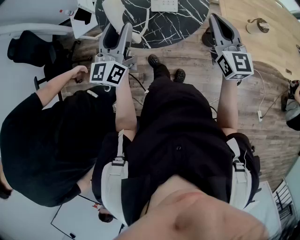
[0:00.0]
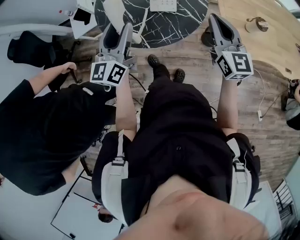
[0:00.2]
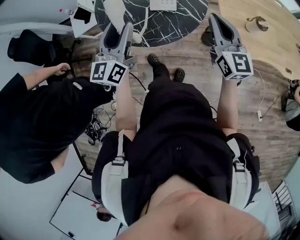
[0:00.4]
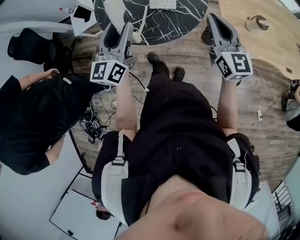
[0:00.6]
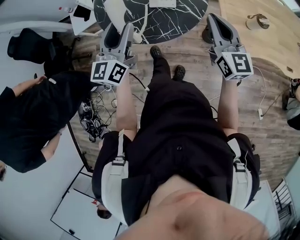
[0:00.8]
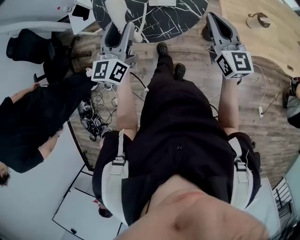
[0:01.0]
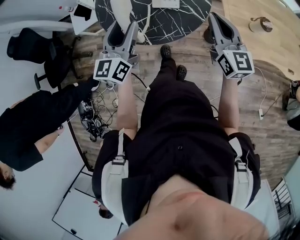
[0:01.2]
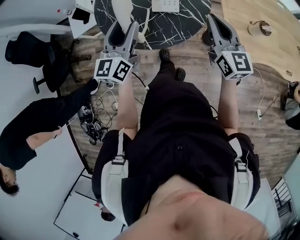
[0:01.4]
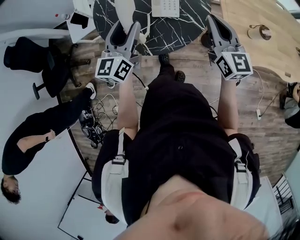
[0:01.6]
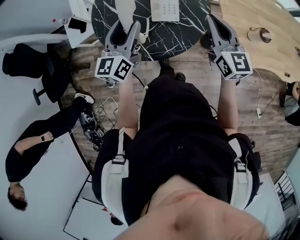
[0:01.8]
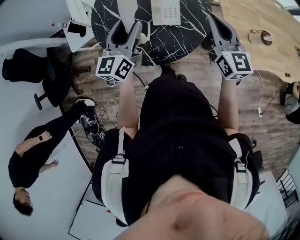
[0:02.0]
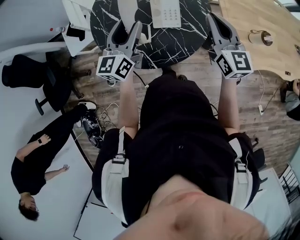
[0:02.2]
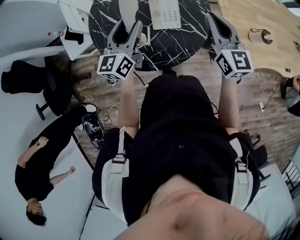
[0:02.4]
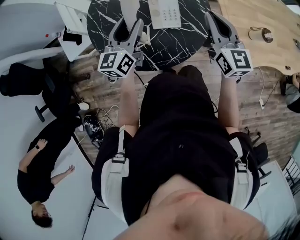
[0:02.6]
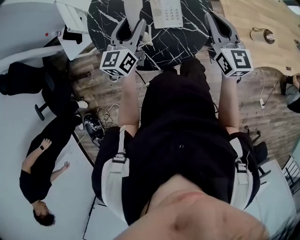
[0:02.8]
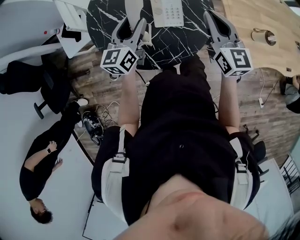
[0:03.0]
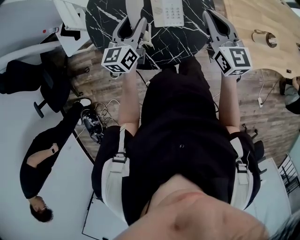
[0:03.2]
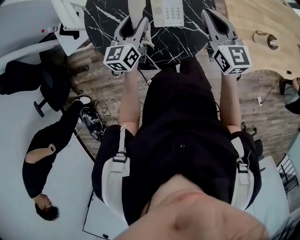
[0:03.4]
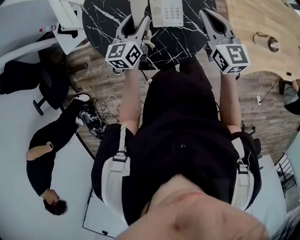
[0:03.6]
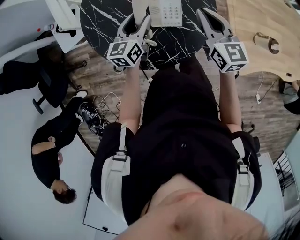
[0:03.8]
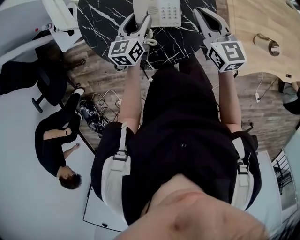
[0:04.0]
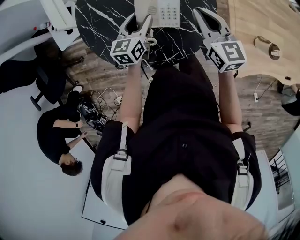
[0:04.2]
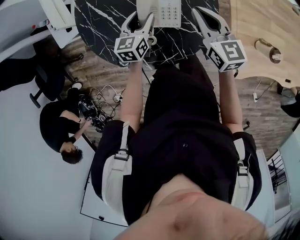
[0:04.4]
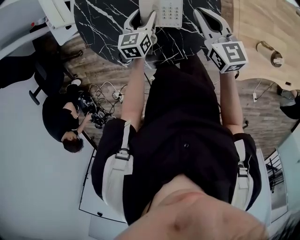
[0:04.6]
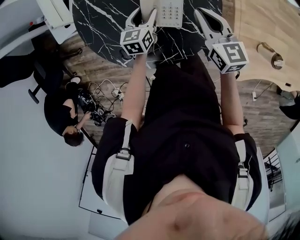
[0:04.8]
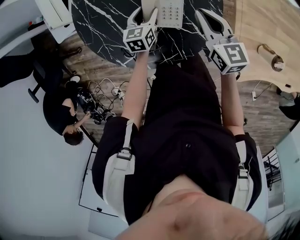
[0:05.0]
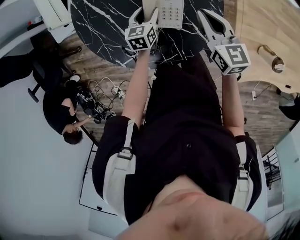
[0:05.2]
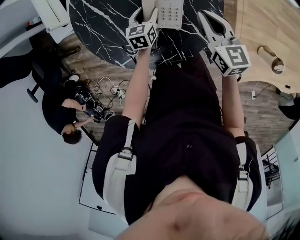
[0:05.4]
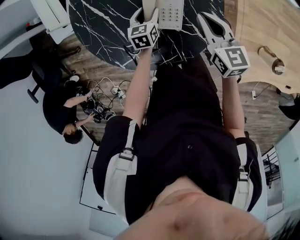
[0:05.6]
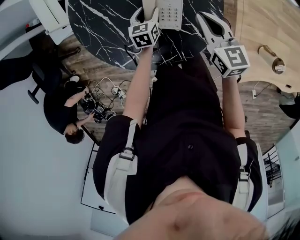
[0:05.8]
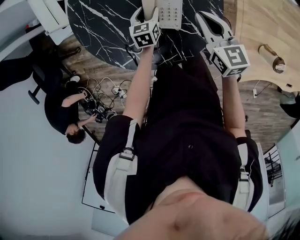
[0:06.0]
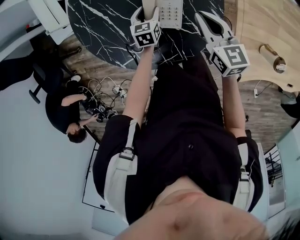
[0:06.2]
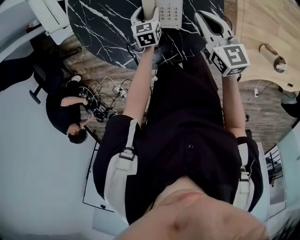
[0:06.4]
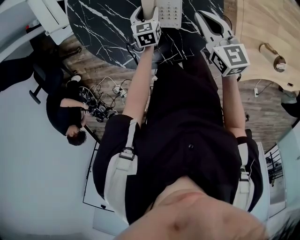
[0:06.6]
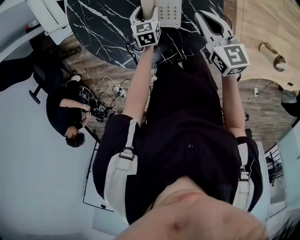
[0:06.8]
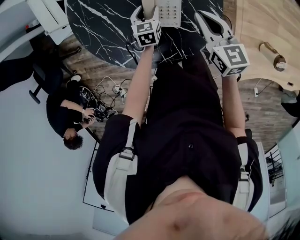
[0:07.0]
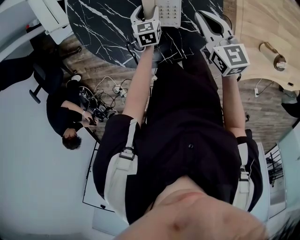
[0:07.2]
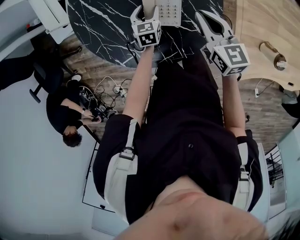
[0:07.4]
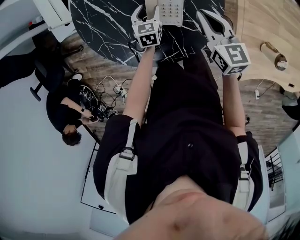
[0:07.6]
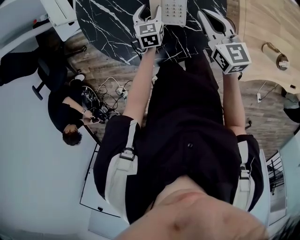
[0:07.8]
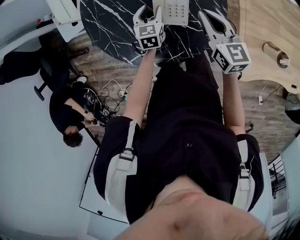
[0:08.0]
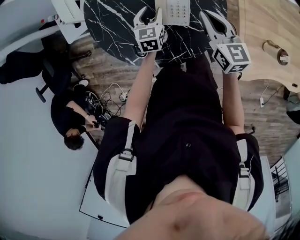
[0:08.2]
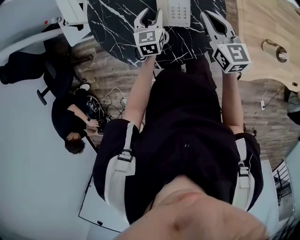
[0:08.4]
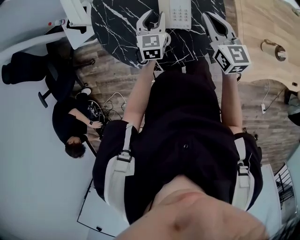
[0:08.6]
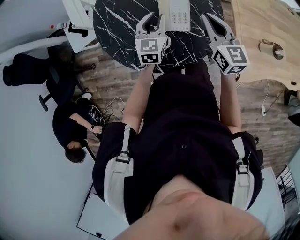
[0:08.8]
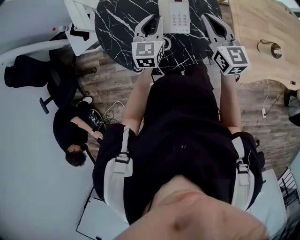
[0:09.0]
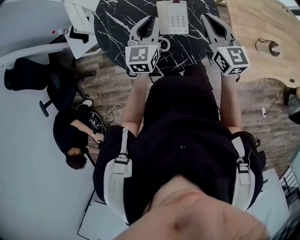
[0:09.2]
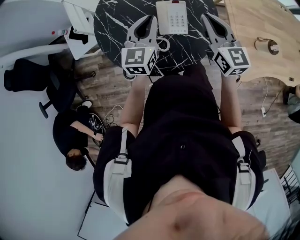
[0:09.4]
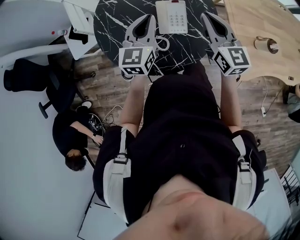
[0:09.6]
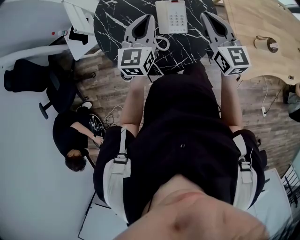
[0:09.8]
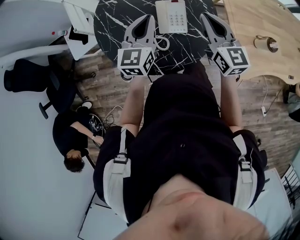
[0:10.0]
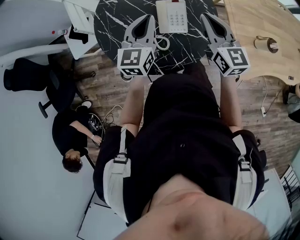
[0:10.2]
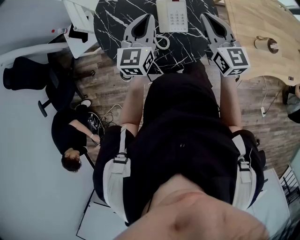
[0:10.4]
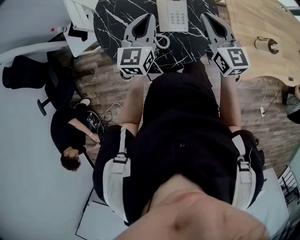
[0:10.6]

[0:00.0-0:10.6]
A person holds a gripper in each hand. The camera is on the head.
0:00.0 to 0:01.6: The two grippers go some 5 cm forward.
0:01.6 to 0:03.0: The left gripper moves forward and downward, approximately 15 cm. Meanwhile the right gripper heads forward and to the left, covering some 10 cm.
0:03.0 to 0:04.6: The two grippers go about 15 cm downward and forward. The left gripper turns by roughly 20 degrees.
0:04.6 to 0:06.0: The left gripper goes some 10 cm downward.
0:06.0 to 0:07.6: The grippers make only small movements.
0:07.6 to 0:09.0: The left gripper moves upward, approximately 20 cm, changes its angle by some 30 degrees, and closes its fingers. The right gripper travels upward and backward by some 10 cm.
0:09.0 to 0:10.6: The left gripper heads upward, covering about 10 cm.

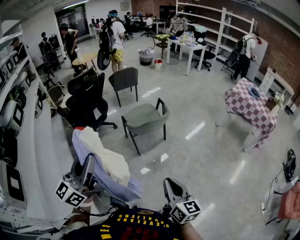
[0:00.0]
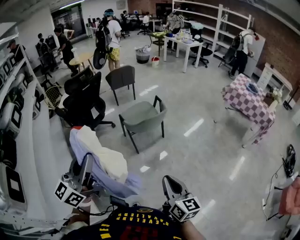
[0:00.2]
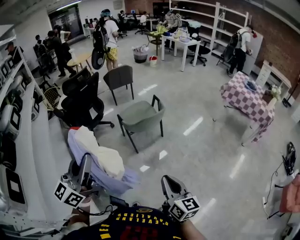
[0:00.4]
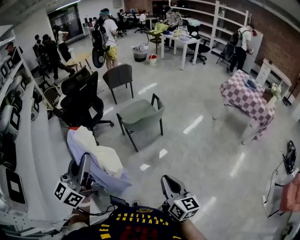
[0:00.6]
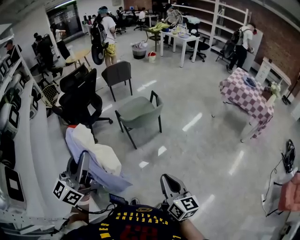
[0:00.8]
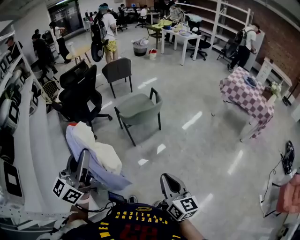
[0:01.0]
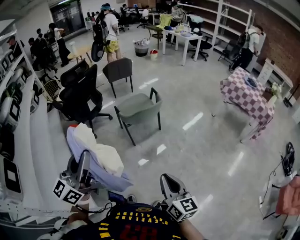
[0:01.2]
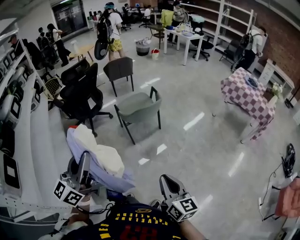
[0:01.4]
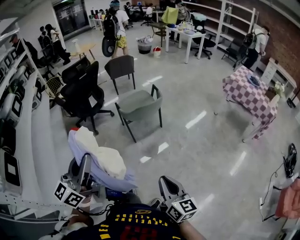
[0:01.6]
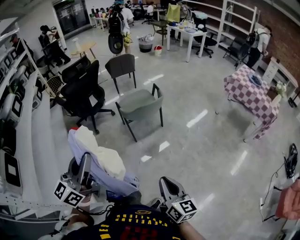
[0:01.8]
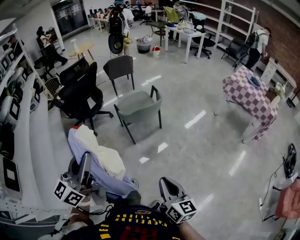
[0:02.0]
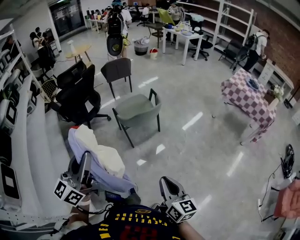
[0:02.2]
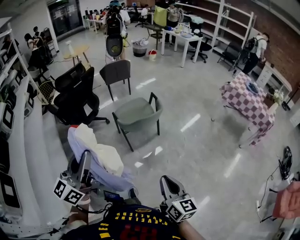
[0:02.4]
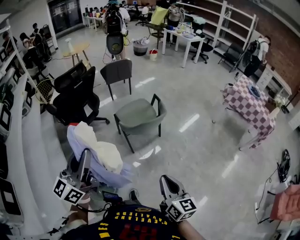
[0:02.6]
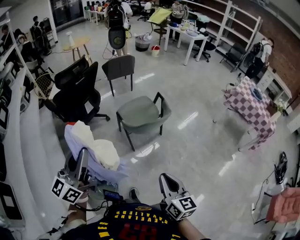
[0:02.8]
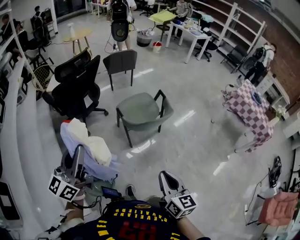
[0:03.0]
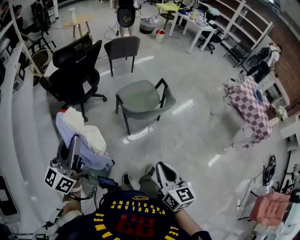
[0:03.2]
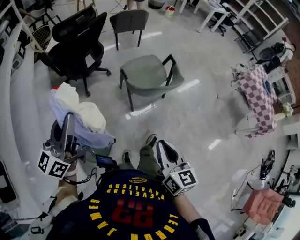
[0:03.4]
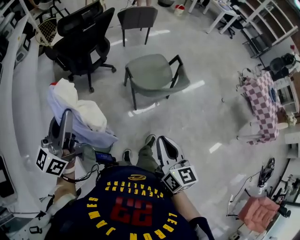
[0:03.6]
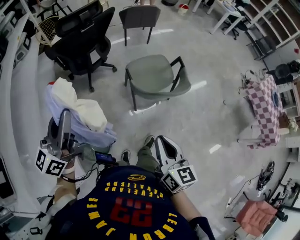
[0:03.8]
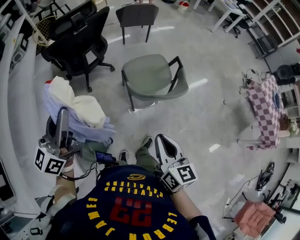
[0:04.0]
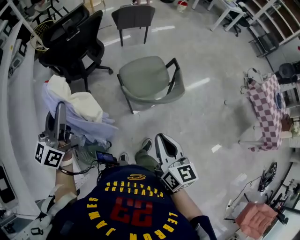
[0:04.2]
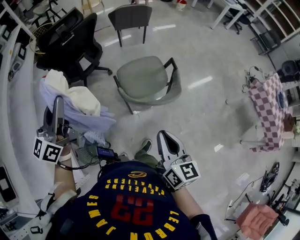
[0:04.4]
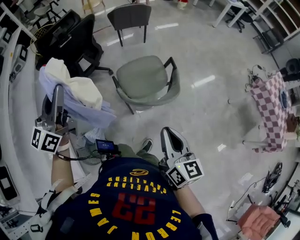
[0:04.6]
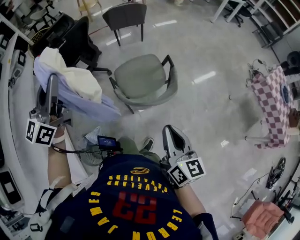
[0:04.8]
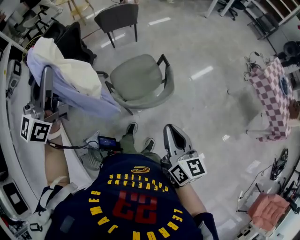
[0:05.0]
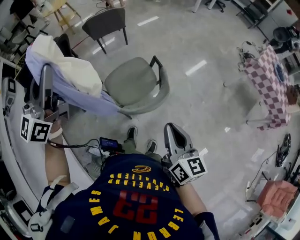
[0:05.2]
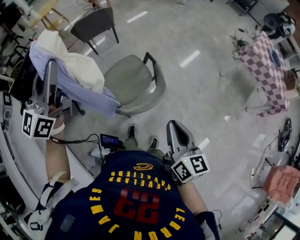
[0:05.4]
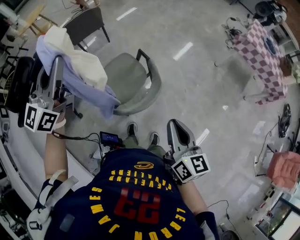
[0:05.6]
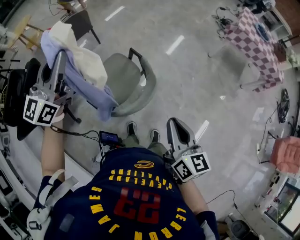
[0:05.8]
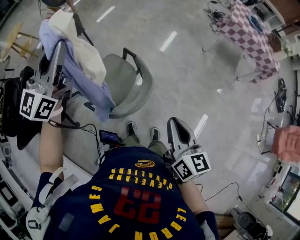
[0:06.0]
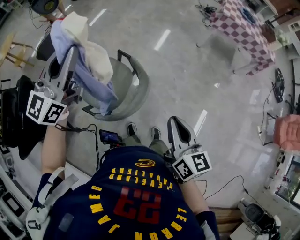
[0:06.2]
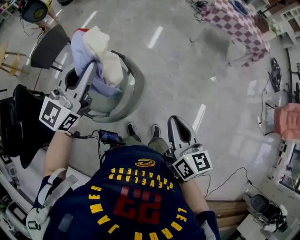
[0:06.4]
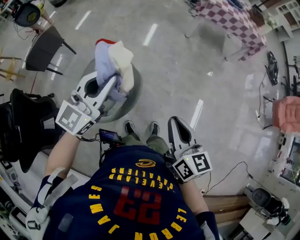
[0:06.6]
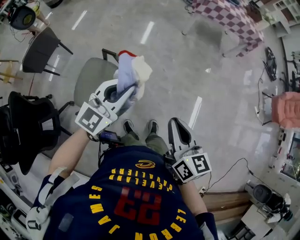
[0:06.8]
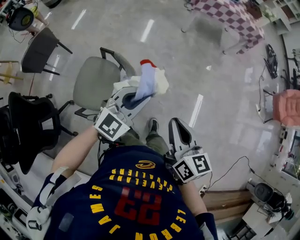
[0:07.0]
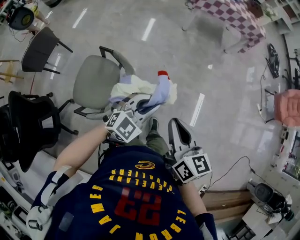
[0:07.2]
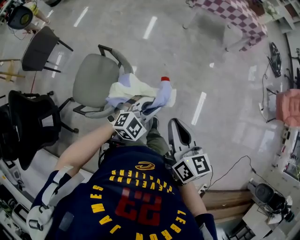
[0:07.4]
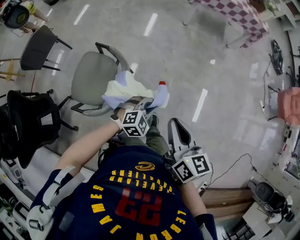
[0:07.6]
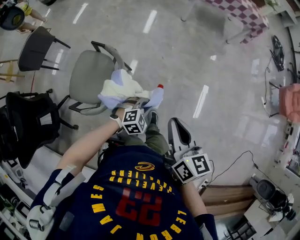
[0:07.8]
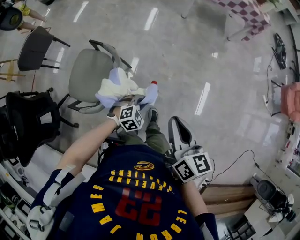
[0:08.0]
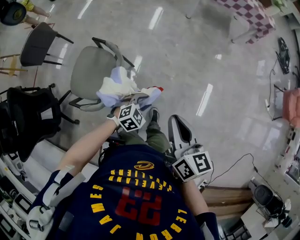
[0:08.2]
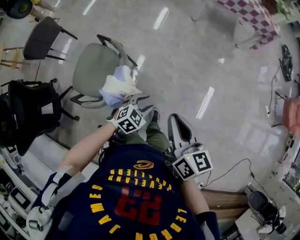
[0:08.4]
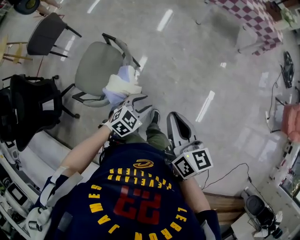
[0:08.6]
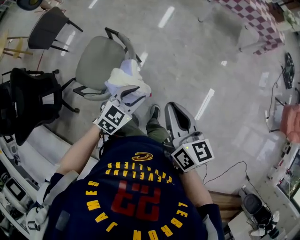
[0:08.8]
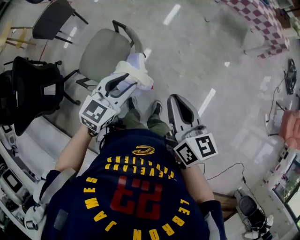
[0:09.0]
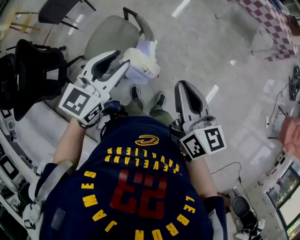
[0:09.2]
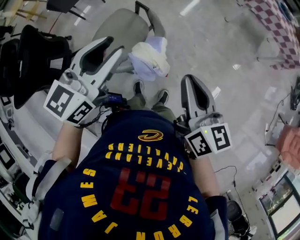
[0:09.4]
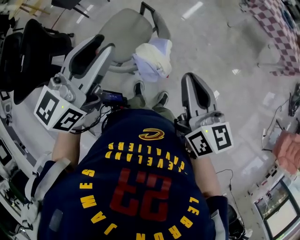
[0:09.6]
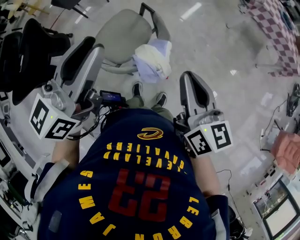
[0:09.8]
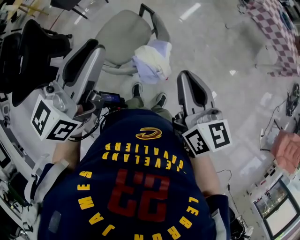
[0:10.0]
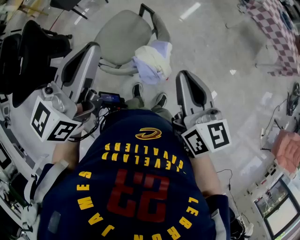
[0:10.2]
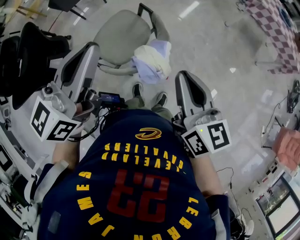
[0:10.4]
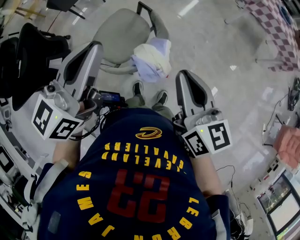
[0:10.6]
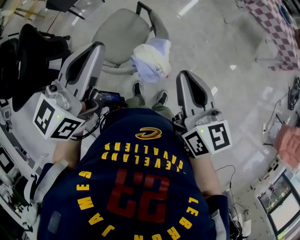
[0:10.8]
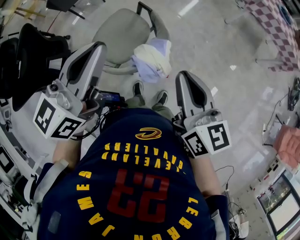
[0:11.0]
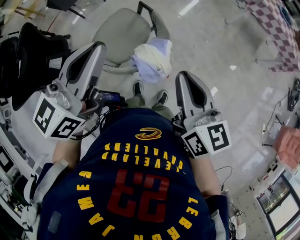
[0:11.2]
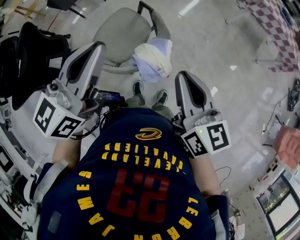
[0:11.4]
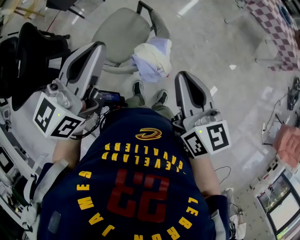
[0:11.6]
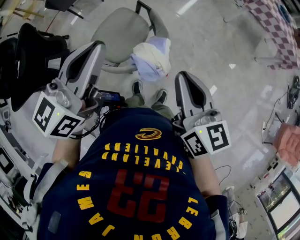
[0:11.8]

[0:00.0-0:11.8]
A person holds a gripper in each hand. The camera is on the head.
0:00.0 to 0:01.4: The grippers both shift to the right by roughly 5 cm.
0:01.4 to 0:03.0: The two grippers go roughly 25 cm forward and to the left.
0:03.0 to 0:04.4: The two grippers go about 25 cm forward.
0:04.4 to 0:06.0: The right gripper moves some 15 cm, and swivels about 40 degrees, while the left gripper moves about 40 cm, and swivels roughly 50 degrees.
0:06.0 to 0:07.4: The left gripper ends up about 50 cm from where it was, and tilts its fingers roughly 40 degrees downward; the right gripper changes place by about 10 cm.
0:07.4 to 0:08.8: The left gripper goes about 5 cm to the left, moves approximately 15 cm downward and comes back, rotates approximately 30 degrees, and opens its fingers.
0:08.8 to 0:10.4: The right gripper heads to the left, covering approximately 15 cm, while the left gripper shifts approximately 35 cm upward and to the left, tilts its fingers approximately 40 degrees upward, and closes up.
0:10.4 to 0:11.8: The grippers move only a little.

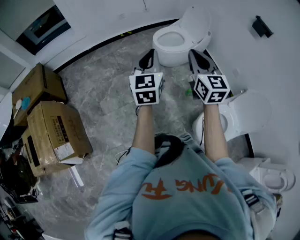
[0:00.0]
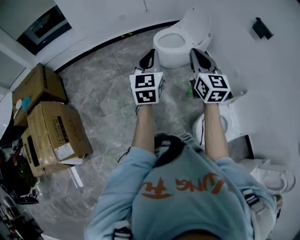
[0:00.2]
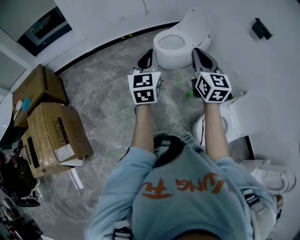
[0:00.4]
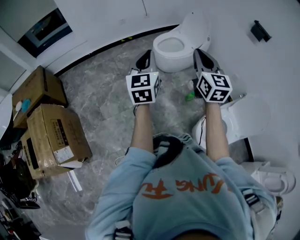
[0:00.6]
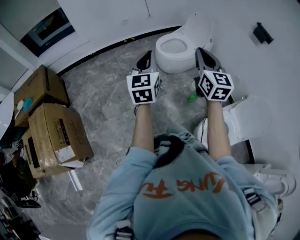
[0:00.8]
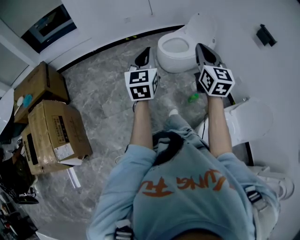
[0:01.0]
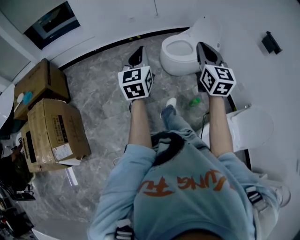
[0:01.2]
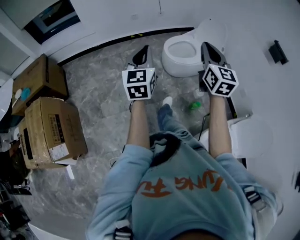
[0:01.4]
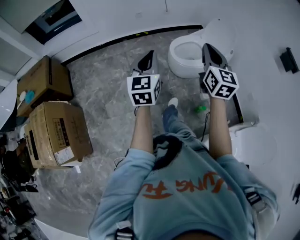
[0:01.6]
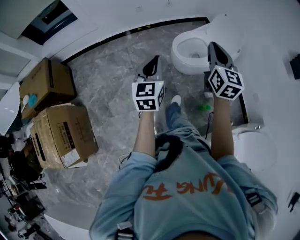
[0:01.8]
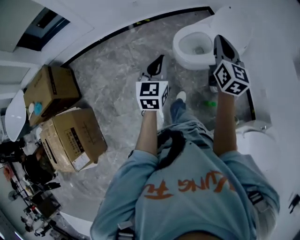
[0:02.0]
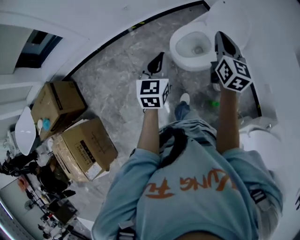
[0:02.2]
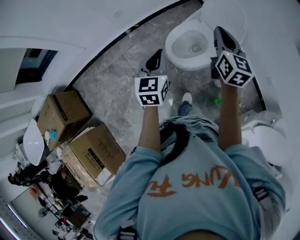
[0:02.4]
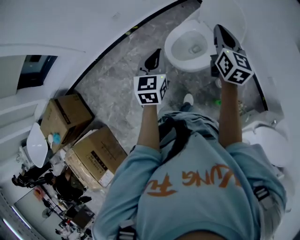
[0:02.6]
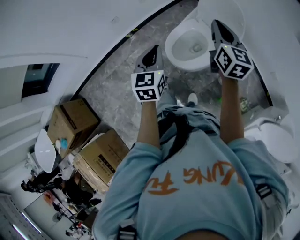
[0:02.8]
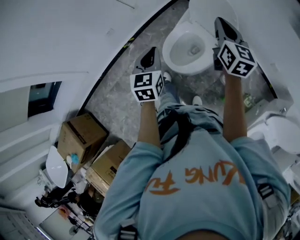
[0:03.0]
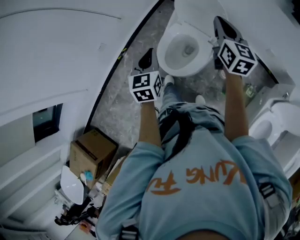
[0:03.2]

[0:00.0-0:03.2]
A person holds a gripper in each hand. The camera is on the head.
0:00.0 to 0:01.6: Both grippers move forward, approximately 20 cm.
0:01.6 to 0:03.2: The two grippers travel together, approximately 50 cm. The right gripper swivels about 40 degrees; the left gripper turns by some 40 degrees.
